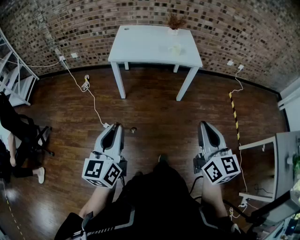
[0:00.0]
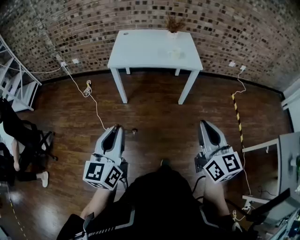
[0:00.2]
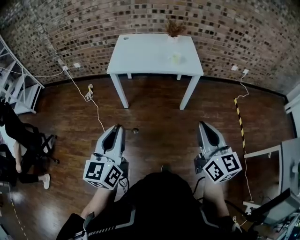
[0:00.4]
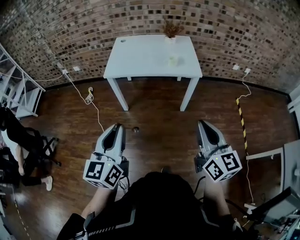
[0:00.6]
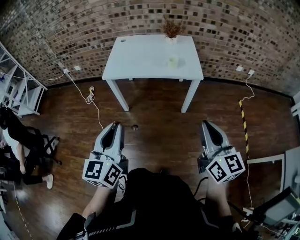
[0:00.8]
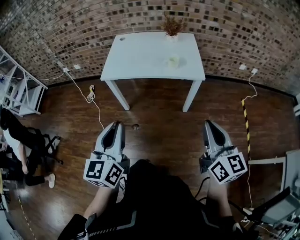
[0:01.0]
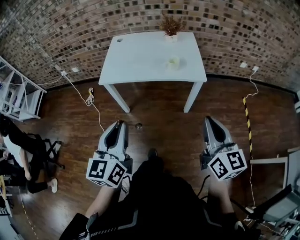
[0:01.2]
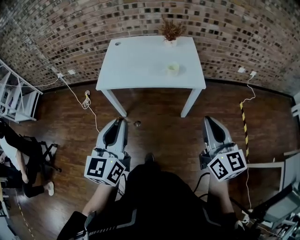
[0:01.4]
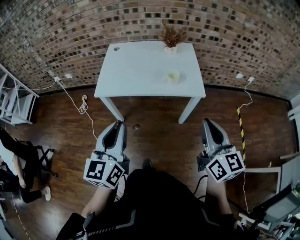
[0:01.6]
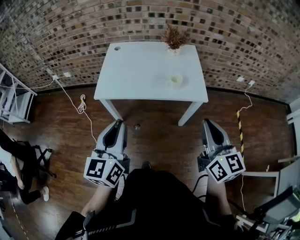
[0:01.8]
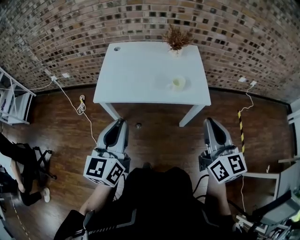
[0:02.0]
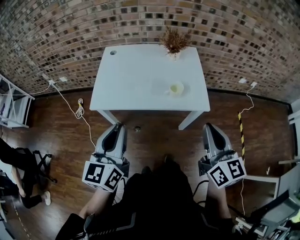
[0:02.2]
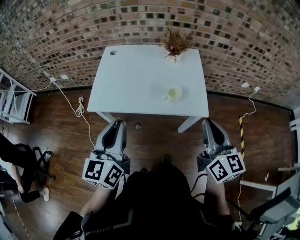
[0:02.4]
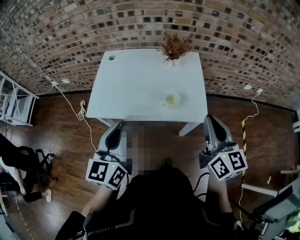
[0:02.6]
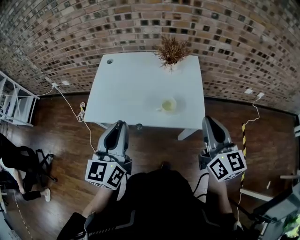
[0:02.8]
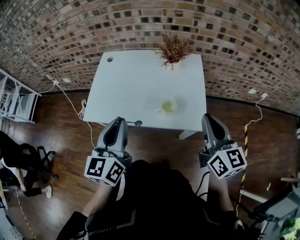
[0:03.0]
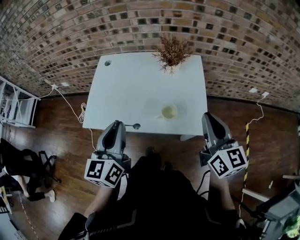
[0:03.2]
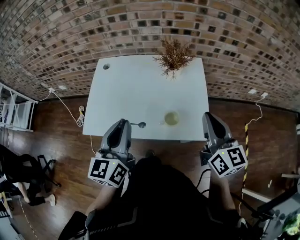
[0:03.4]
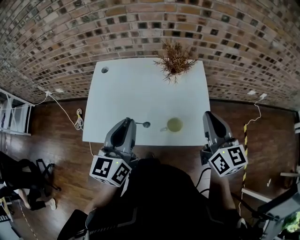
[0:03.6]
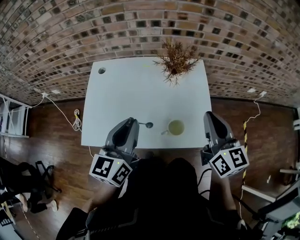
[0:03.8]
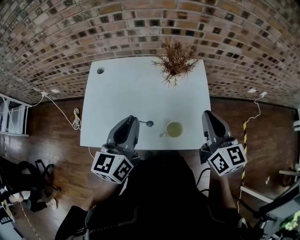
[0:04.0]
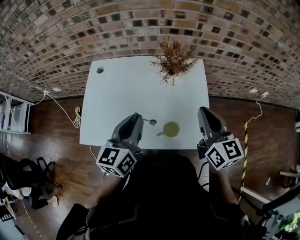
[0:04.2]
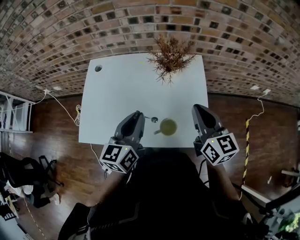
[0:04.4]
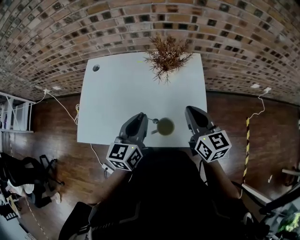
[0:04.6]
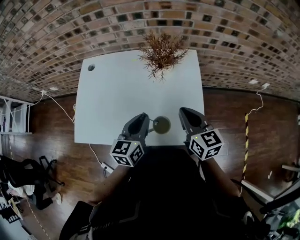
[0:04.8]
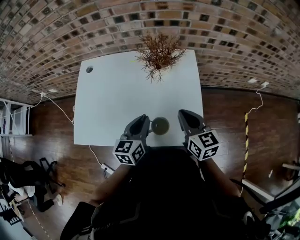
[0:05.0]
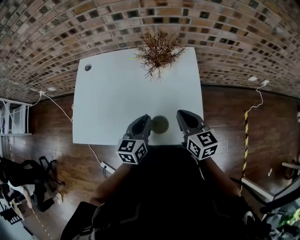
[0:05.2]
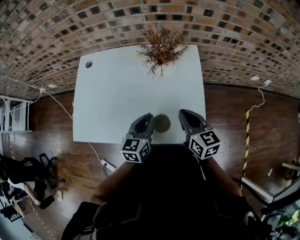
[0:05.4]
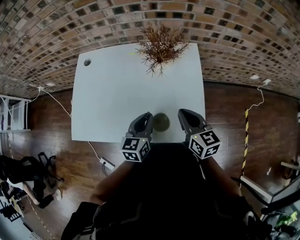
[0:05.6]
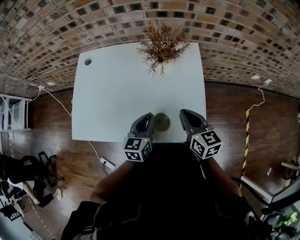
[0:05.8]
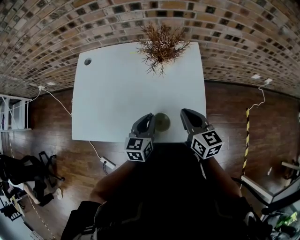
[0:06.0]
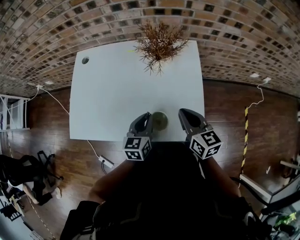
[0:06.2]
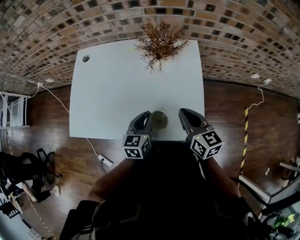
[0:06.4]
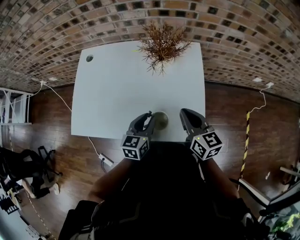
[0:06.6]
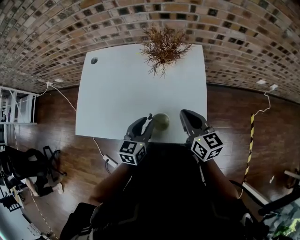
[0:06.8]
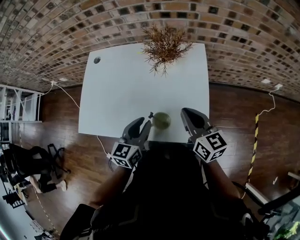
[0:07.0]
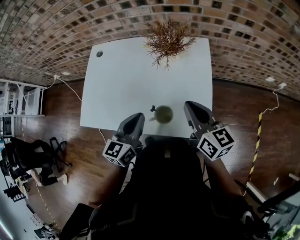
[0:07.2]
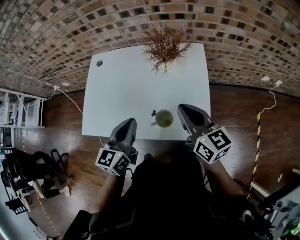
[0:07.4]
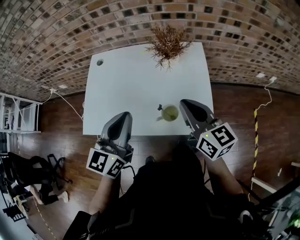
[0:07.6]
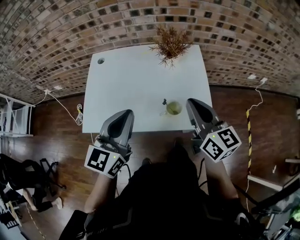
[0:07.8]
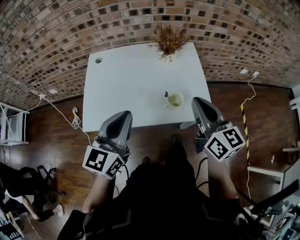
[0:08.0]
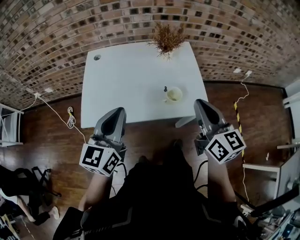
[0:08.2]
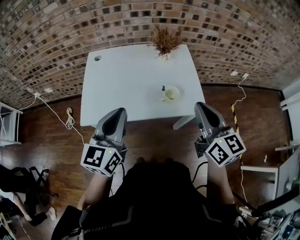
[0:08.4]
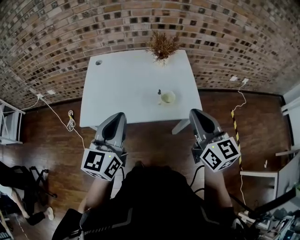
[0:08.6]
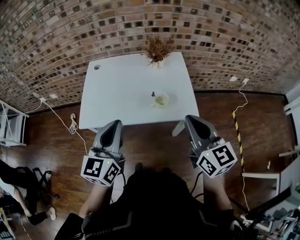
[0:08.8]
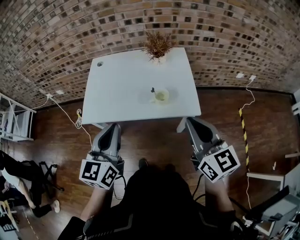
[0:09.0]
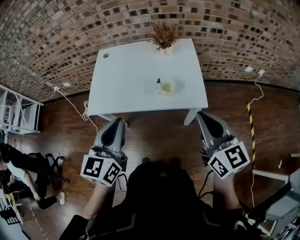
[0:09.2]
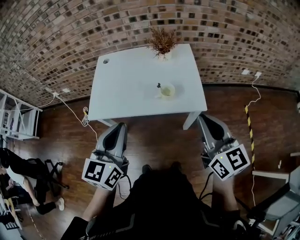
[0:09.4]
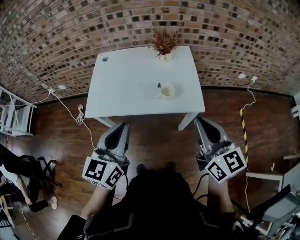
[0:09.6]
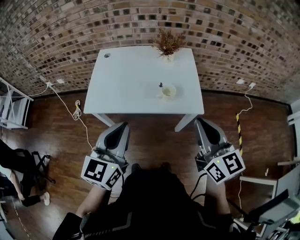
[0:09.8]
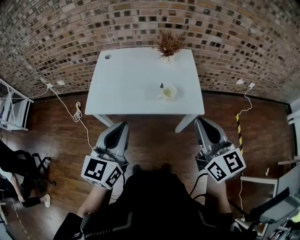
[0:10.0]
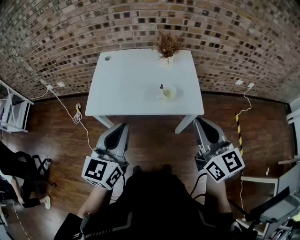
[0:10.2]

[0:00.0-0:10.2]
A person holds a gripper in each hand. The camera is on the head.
0:00.0 to 0:01.4: Both grippers move forward and to the right, approximately 30 cm.
0:01.4 to 0:03.0: Both grippers travel together forward, approximately 30 cm.
0:03.0 to 0:04.4: The right gripper moves forward, approximately 20 cm. Meanwhile the left gripper shifts approximately 20 cm forward and downward.
0:04.4 to 0:05.8: The left gripper heads downward and to the right, covering approximately 15 cm. The right gripper goes some 15 cm downward.
0:05.8 to 0:07.2: Both grippers move upward, some 10 cm.
0:07.2 to 0:08.8: The left gripper travels backward, upward and to the left by some 30 cm. The right gripper moves backward and upward, about 30 cm, and rotates approximately 20 degrees.
0:08.8 to 0:10.2: Both grippers move backward, about 5 cm.

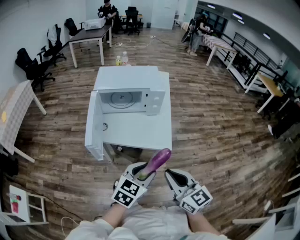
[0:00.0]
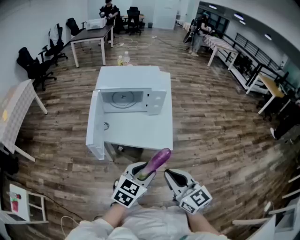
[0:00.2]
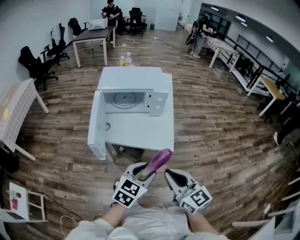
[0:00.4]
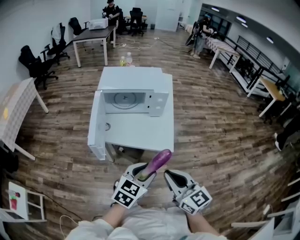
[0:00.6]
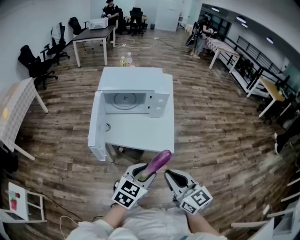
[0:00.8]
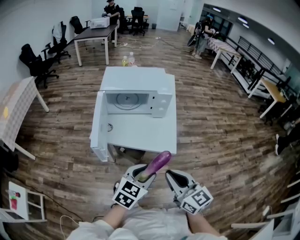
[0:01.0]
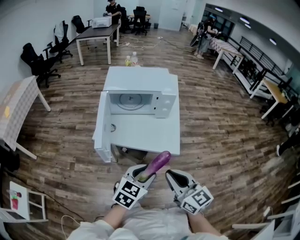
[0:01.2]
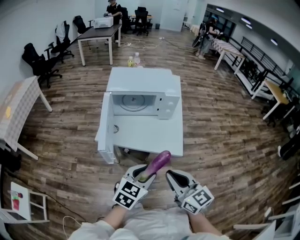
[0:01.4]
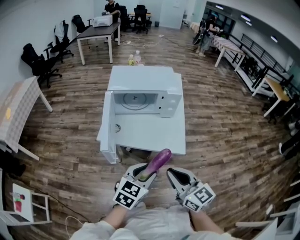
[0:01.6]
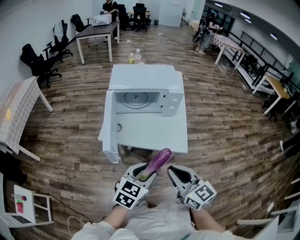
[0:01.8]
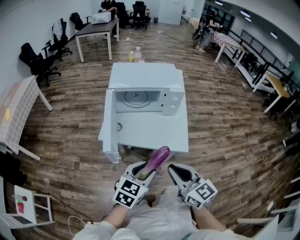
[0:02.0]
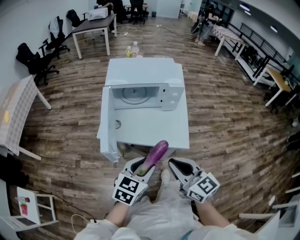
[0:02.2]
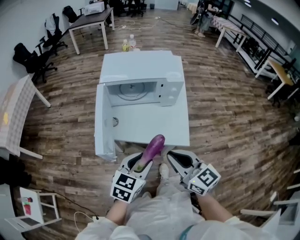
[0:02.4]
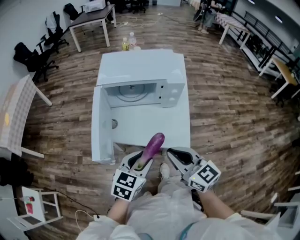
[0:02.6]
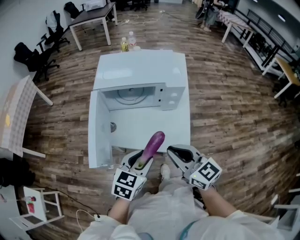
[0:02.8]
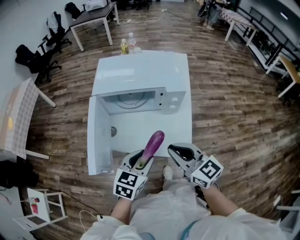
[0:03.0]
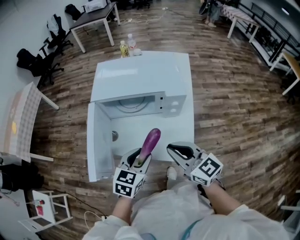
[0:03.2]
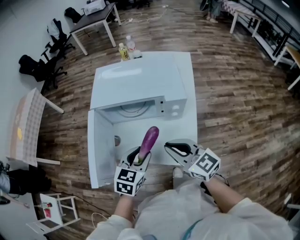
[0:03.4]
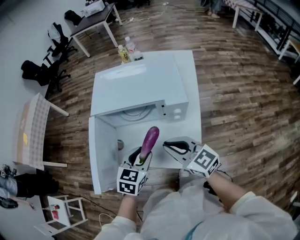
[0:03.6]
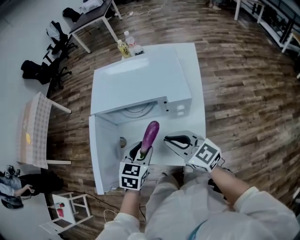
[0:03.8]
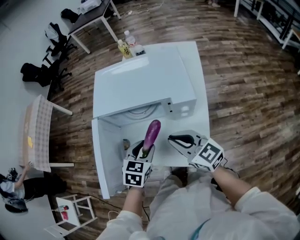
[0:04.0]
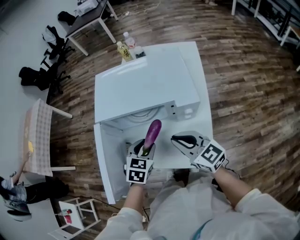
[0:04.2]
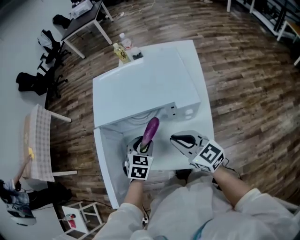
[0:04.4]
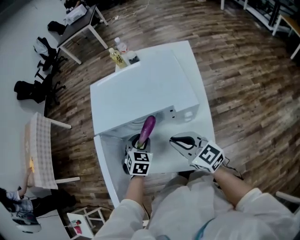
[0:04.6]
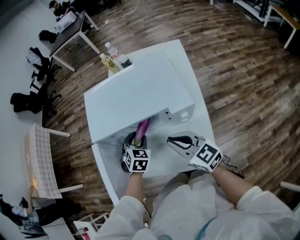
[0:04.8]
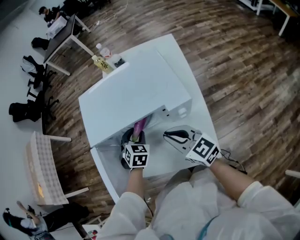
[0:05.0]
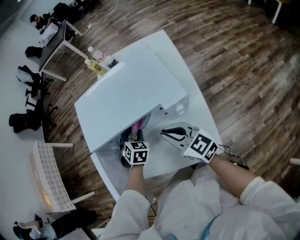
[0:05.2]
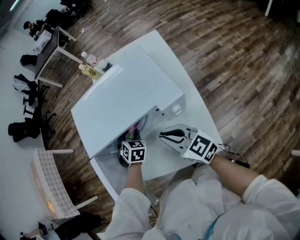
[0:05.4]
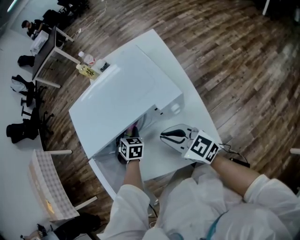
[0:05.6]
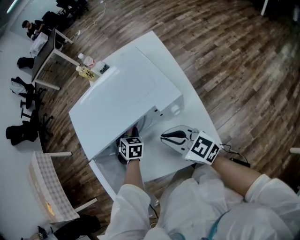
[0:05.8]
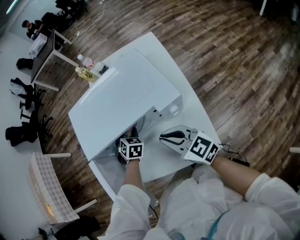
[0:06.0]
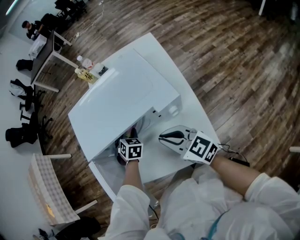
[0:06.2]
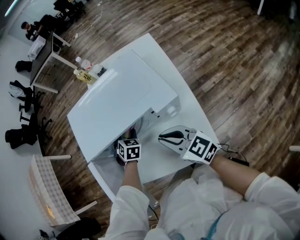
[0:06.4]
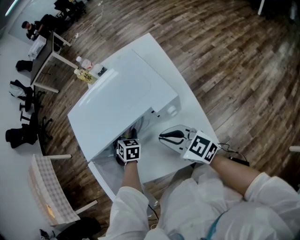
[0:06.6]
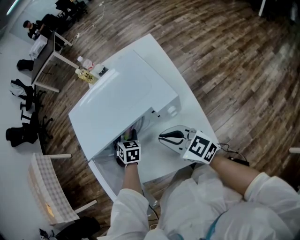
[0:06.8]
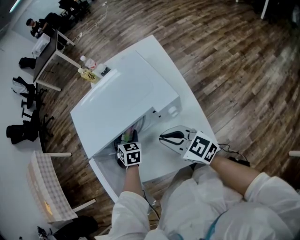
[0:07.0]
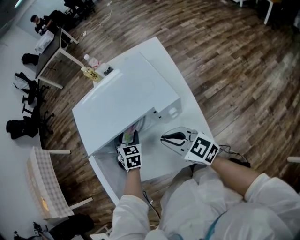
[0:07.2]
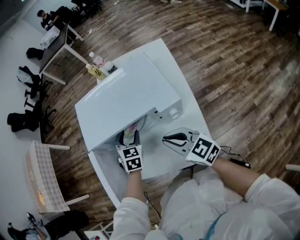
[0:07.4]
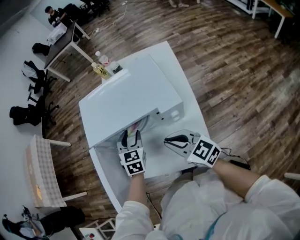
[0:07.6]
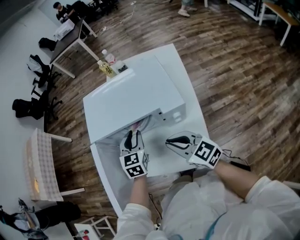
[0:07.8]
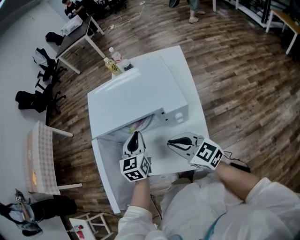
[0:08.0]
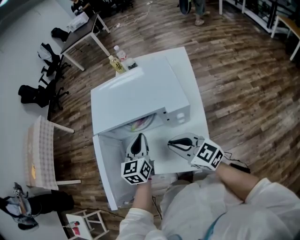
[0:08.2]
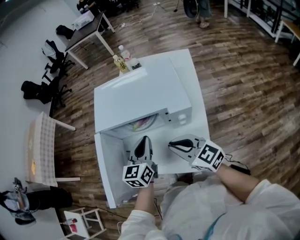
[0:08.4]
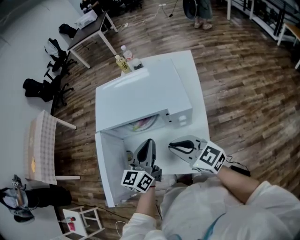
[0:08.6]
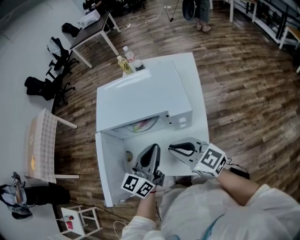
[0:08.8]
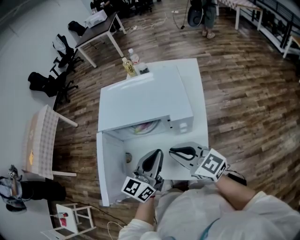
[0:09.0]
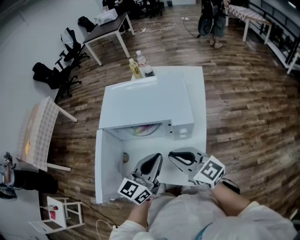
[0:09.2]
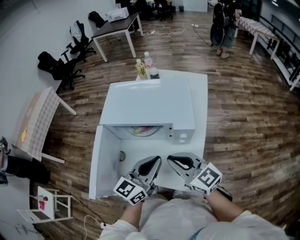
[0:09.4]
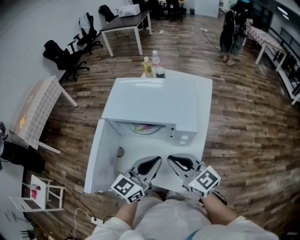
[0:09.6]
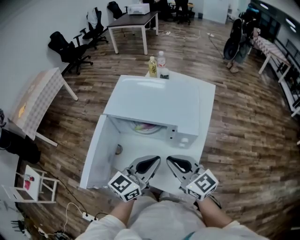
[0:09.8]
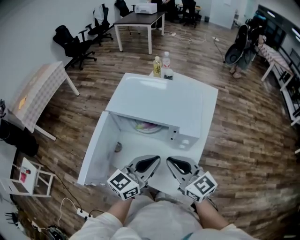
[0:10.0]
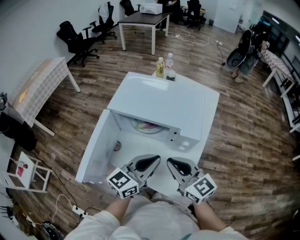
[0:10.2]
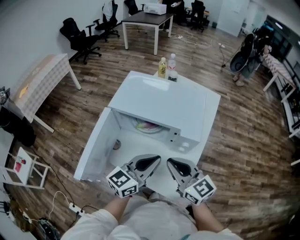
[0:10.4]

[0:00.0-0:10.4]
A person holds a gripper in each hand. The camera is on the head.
0:00.0 to 0:01.4: The grippers both shift to the left by about 5 cm.
0:01.4 to 0:03.0: Both grippers travel together forward, about 15 cm.
0:03.0 to 0:04.4: The grippers both shift forward and downward by approximately 20 cm. The left gripper changes its angle by roughly 20 degrees.
0:04.4 to 0:06.0: The left gripper shifts some 15 cm forward and downward.
0:06.0 to 0:07.4: The left gripper travels upward by some 10 cm, and changes its angle by roughly 20 degrees.
0:07.4 to 0:09.0: The right gripper travels upward by about 5 cm. Meanwhile the left gripper travels backward and upward by roughly 25 cm, tilts its fingers roughly 40 degrees upward, and closes up.
0:09.0 to 0:10.4: The grippers move only a little.

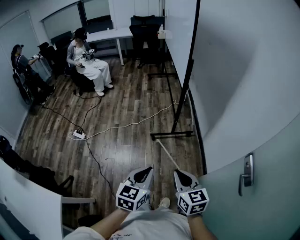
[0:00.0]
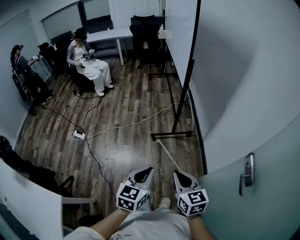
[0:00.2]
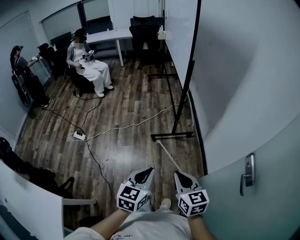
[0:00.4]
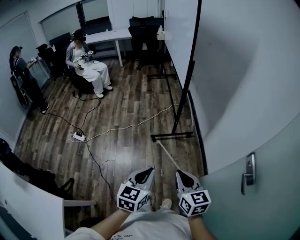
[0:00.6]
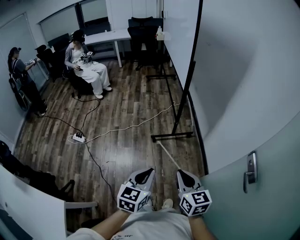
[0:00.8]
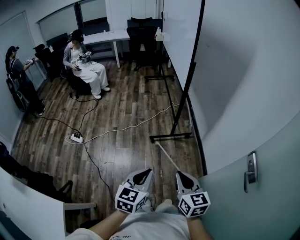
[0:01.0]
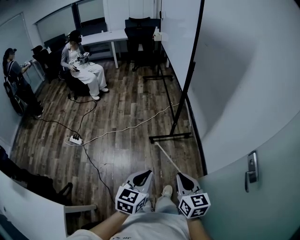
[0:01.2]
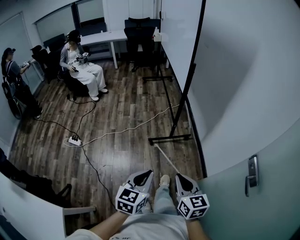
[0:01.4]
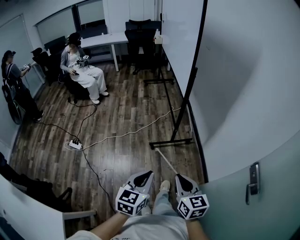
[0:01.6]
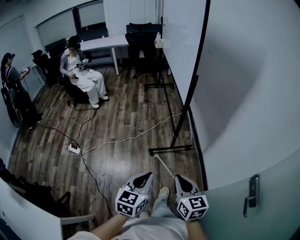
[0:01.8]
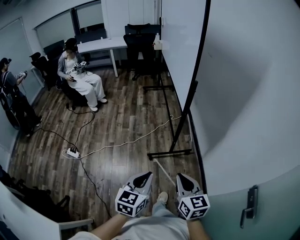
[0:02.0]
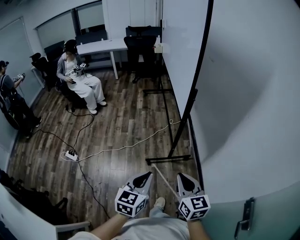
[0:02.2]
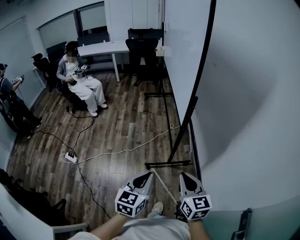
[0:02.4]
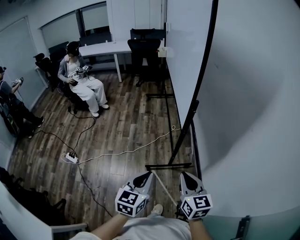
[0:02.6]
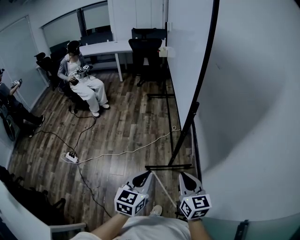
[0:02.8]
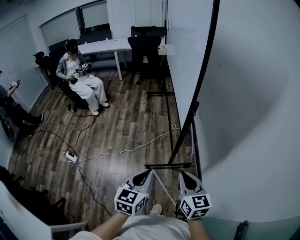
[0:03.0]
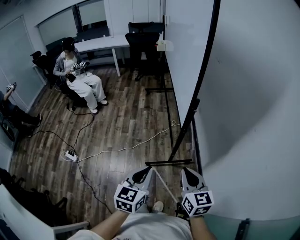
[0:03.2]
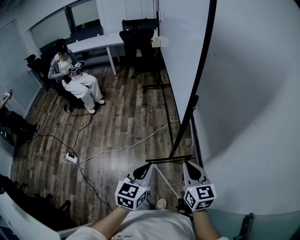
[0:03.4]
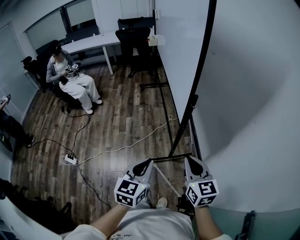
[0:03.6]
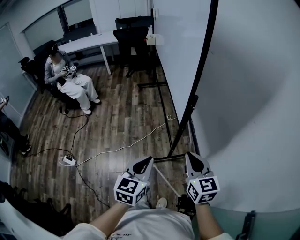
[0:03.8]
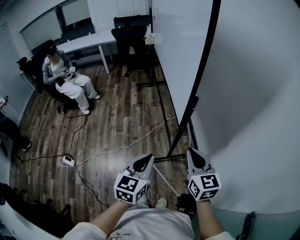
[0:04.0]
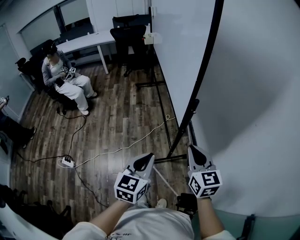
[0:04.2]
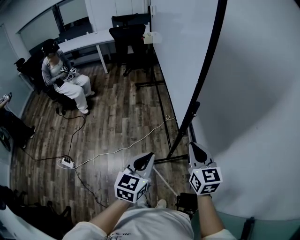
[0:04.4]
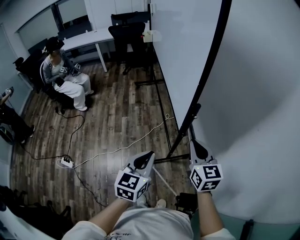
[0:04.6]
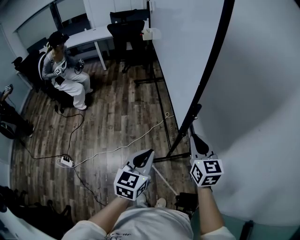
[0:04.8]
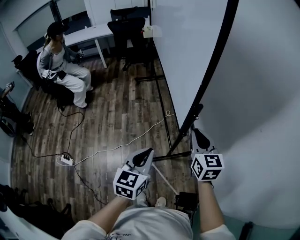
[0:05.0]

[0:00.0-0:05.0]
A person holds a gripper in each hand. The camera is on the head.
0:00.0 to 0:01.6: Both grippers travel together forward, approximately 5 cm.
0:01.6 to 0:03.4: Both grippers move forward, approximately 30 cm.
0:03.4 to 0:05.0: The two grippers go about 15 cm forward.
